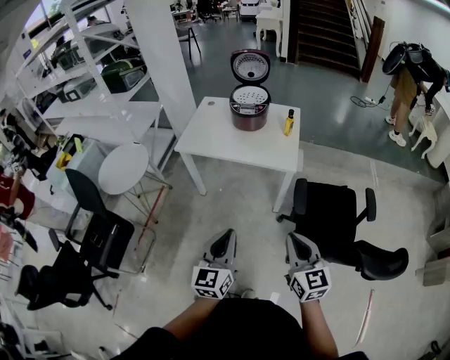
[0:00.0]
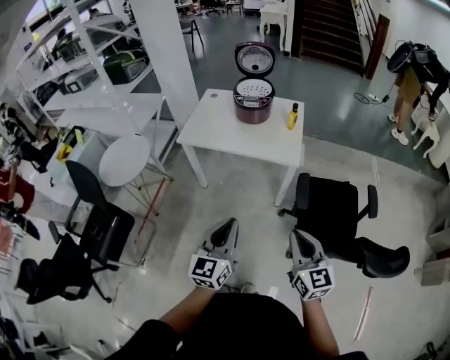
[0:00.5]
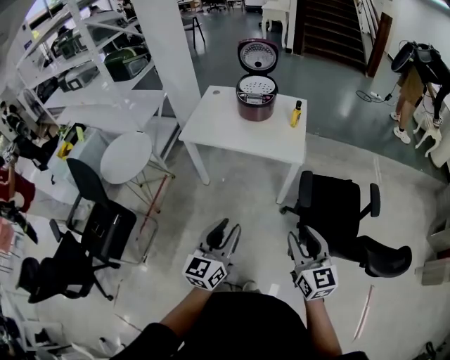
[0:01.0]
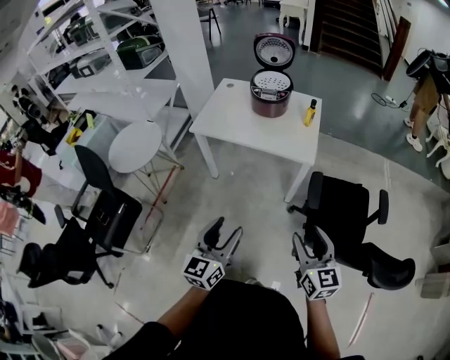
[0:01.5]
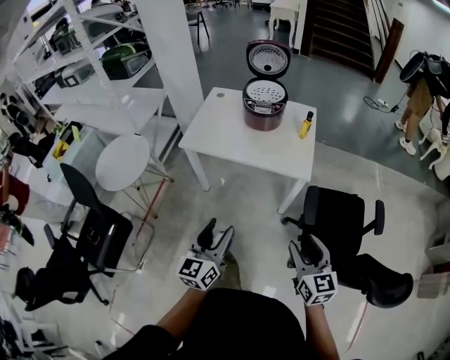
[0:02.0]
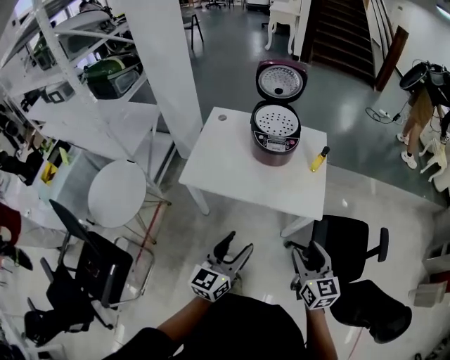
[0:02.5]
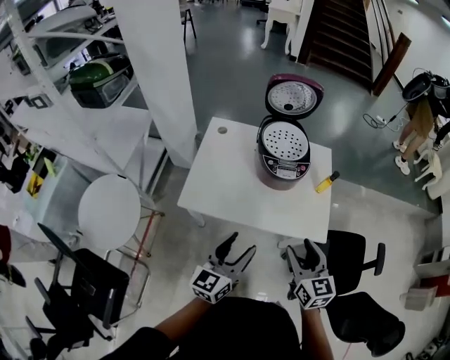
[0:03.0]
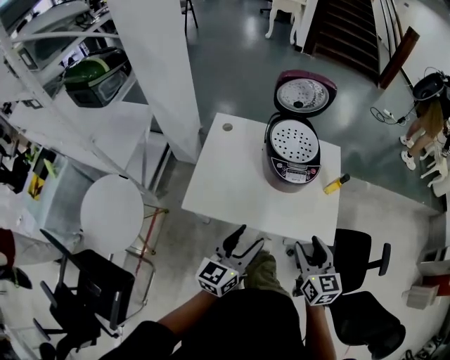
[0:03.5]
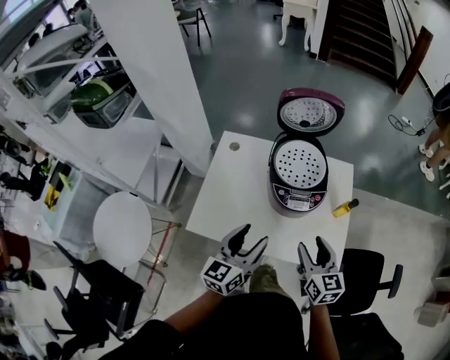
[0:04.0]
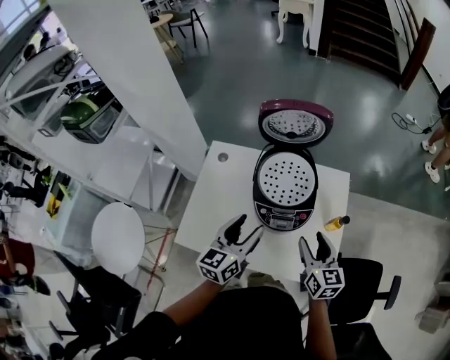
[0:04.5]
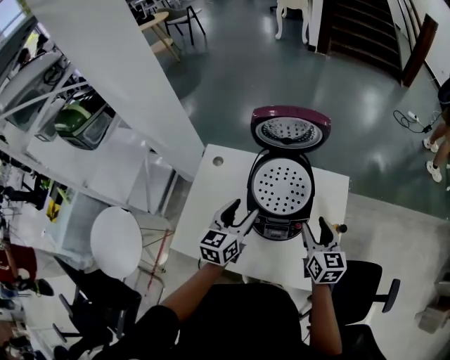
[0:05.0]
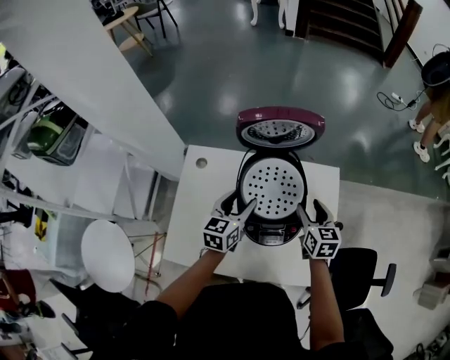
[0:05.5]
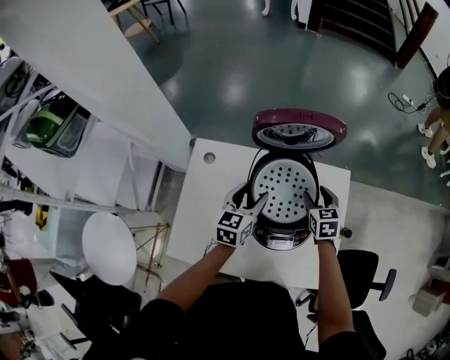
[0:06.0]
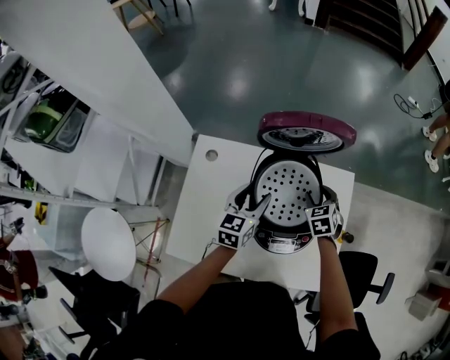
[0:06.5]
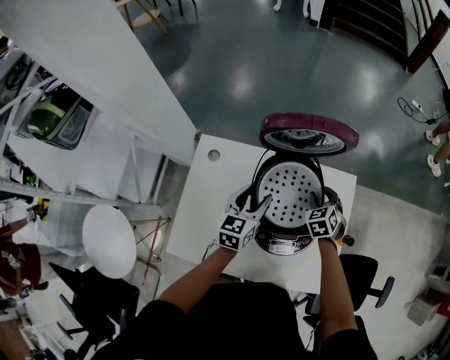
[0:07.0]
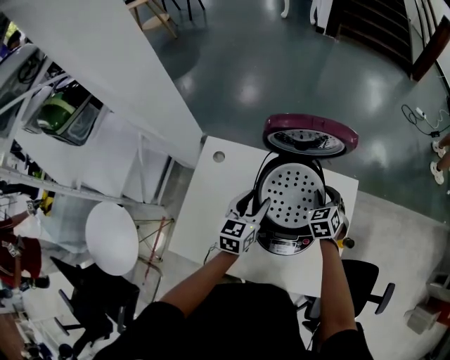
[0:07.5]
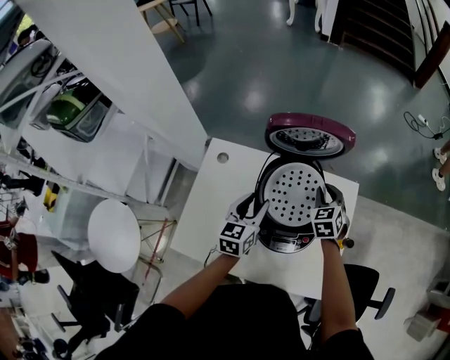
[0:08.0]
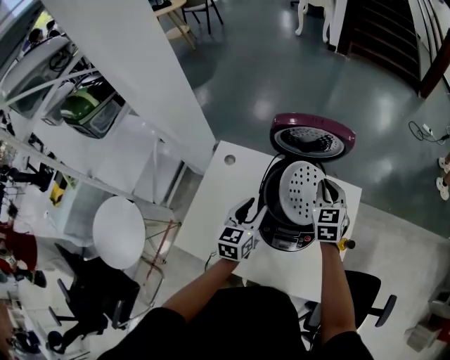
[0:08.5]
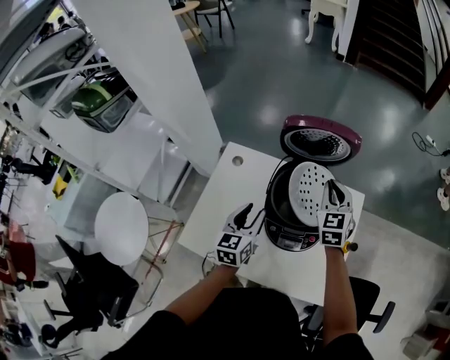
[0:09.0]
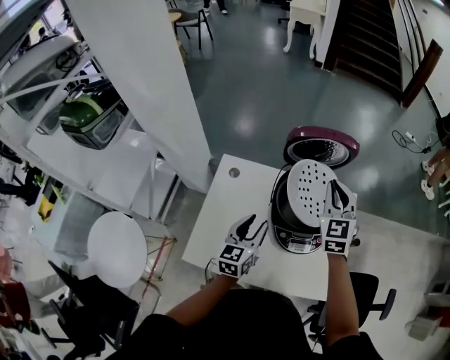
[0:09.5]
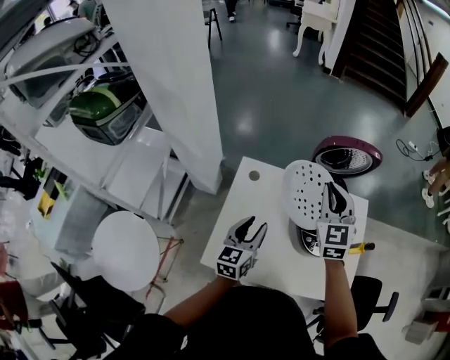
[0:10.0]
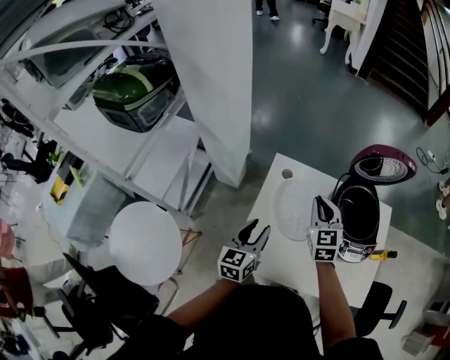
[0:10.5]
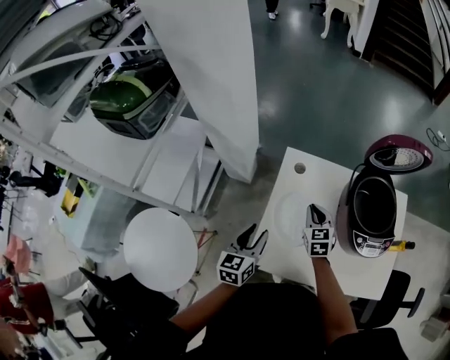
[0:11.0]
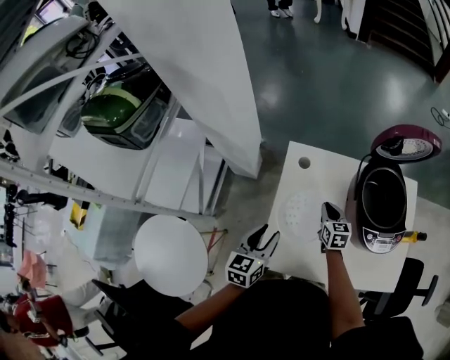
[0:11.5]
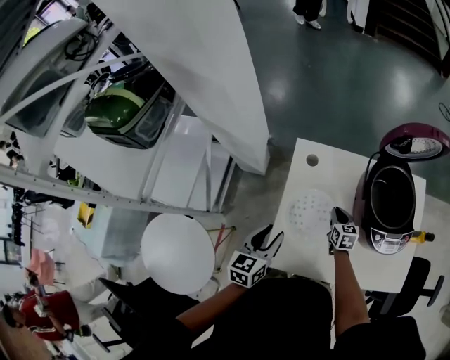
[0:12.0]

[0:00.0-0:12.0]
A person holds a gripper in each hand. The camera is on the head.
0:00.0 to 0:02.0: The left gripper heads forward and to the left, covering roughly 15 cm, and opens. The right gripper heads forward, covering roughly 10 cm, and opens its fingers.
0:02.0 to 0:04.0: Both grippers are carried forward, about 50 cm.
0:04.0 to 0:06.0: The two grippers go about 35 cm forward. The right gripper changes its angle by some 20 degrees.
0:06.0 to 0:08.0: The right gripper turns by roughly 20 degrees, and closes its fingers.
0:08.0 to 0:10.0: The left gripper goes some 20 cm to the left and backward, while the right gripper heads upward and to the left, covering some 30 cm, and turns by some 30 degrees.
0:10.0 to 0:12.0: The left gripper is displaced to the left and downward by roughly 20 cm; the right gripper moves downward, roughly 40 cm, and rotates some 50 degrees.

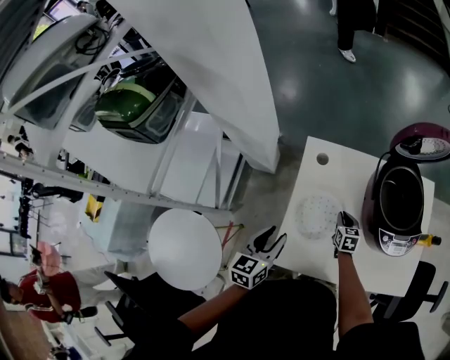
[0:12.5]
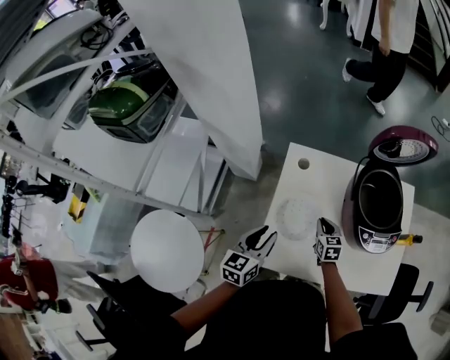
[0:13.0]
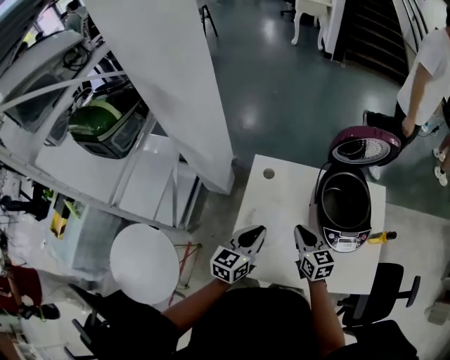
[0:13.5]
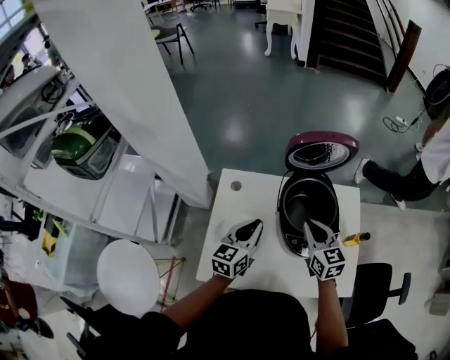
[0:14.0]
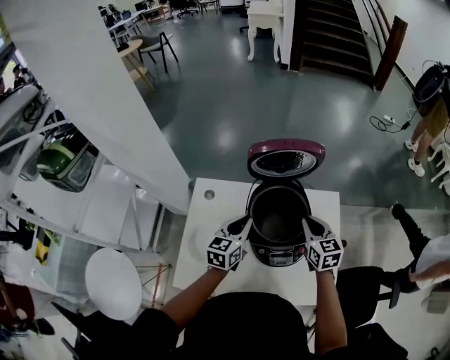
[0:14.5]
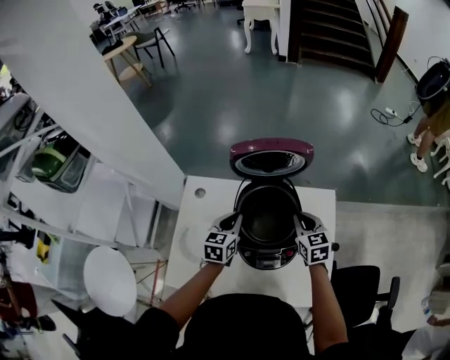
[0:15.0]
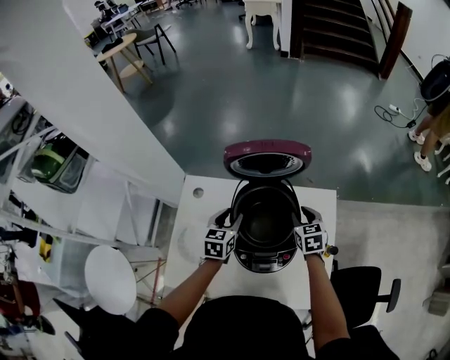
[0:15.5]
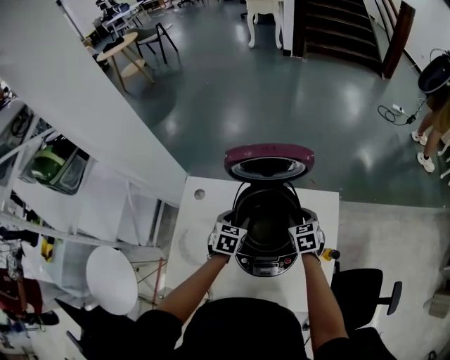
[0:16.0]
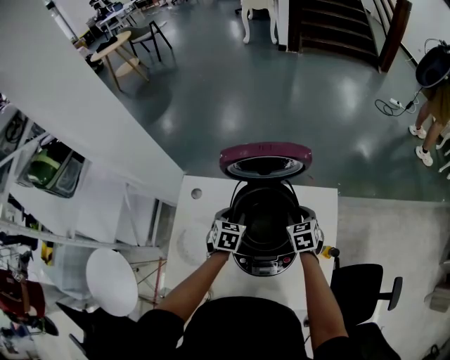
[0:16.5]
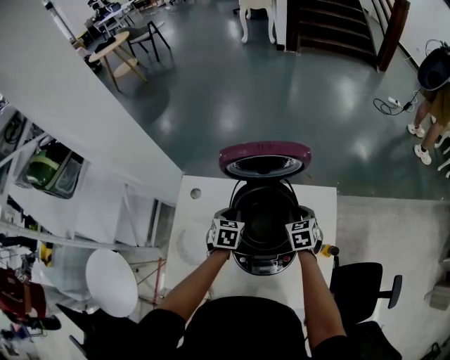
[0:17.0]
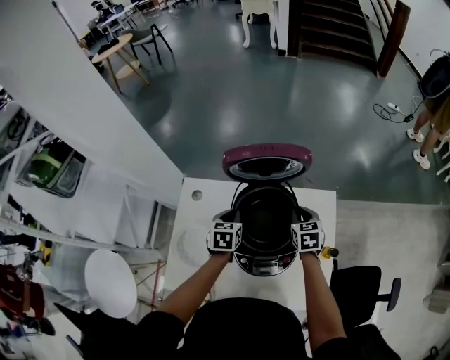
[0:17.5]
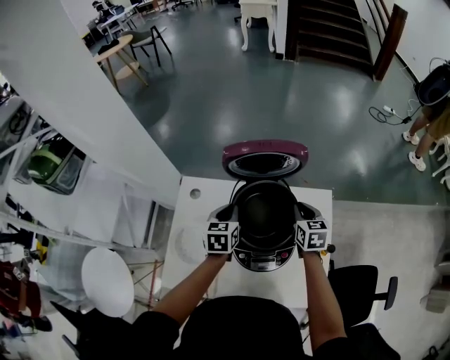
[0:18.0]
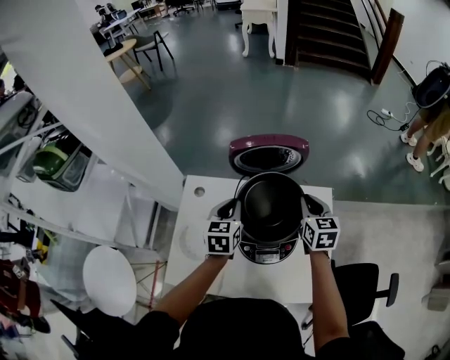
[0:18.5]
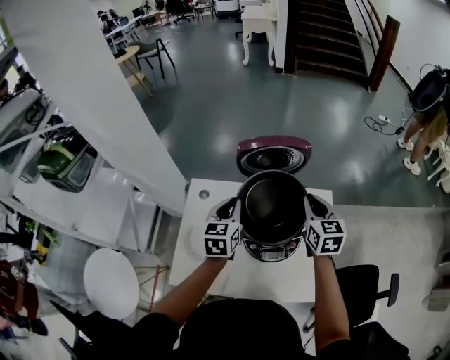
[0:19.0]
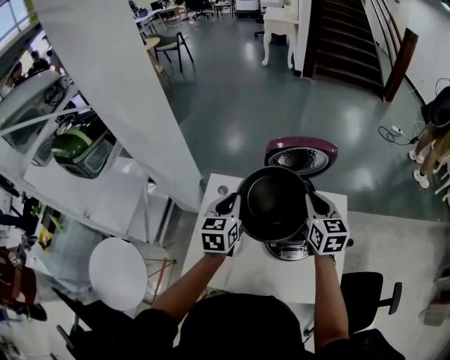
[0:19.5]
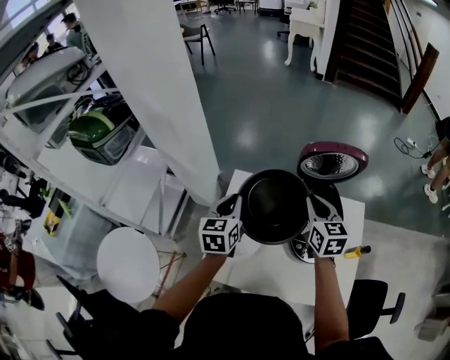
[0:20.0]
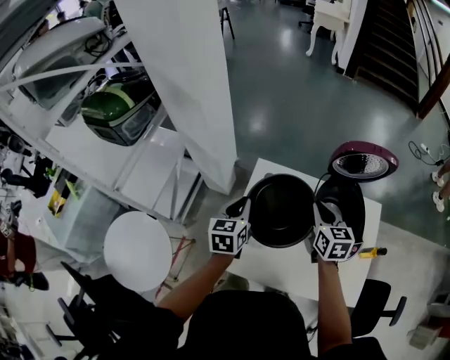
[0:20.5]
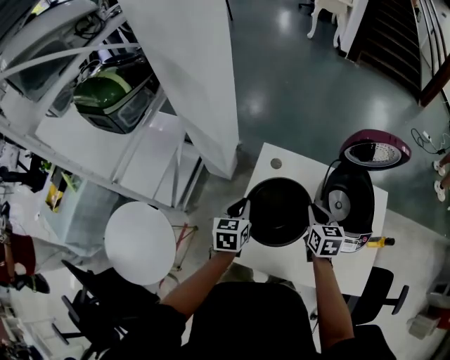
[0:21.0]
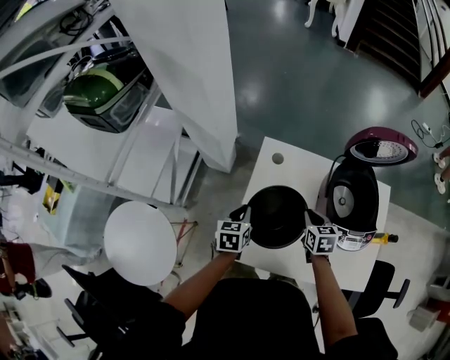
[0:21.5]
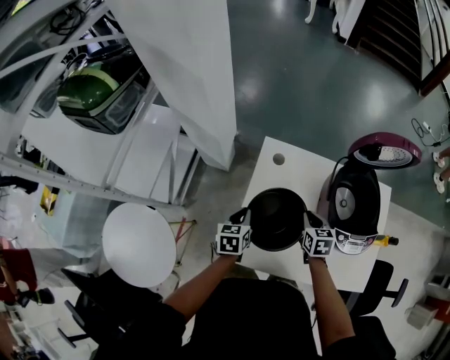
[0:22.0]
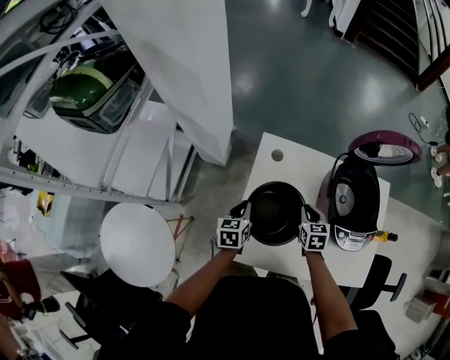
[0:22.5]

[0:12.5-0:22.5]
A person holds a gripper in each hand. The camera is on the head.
0:12.5 to 0:14.5: The right gripper travels upward and to the right by about 40 cm, and changes its angle by some 20 degrees; the left gripper goes approximately 35 cm to the right and forward, and closes.
0:14.5 to 0:16.5: The grippers both shift downward and forward by roughly 15 cm. The right gripper changes its angle by approximately 20 degrees, and opens its fingers; the left gripper rotates approximately 30 degrees, and opens up.
0:16.5 to 0:18.5: Both grippers move upward, some 15 cm. The right gripper rotates about 20 degrees, and closes its fingers; the left gripper swivels roughly 20 degrees, and closes.
0:18.5 to 0:20.5: Both grippers travel together to the left, approximately 30 cm.
0:20.5 to 0:22.5: Both grippers travel together downward, about 20 cm. The right gripper changes its angle by about 20 degrees.

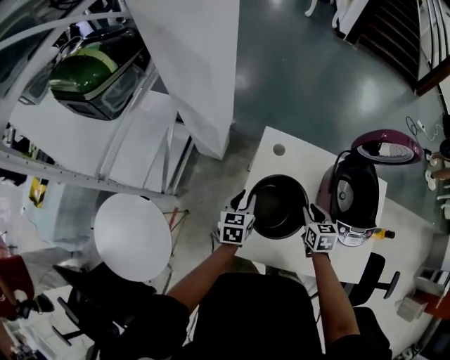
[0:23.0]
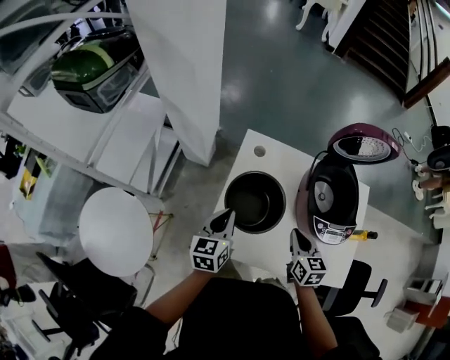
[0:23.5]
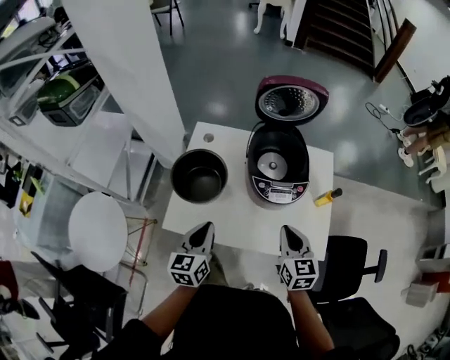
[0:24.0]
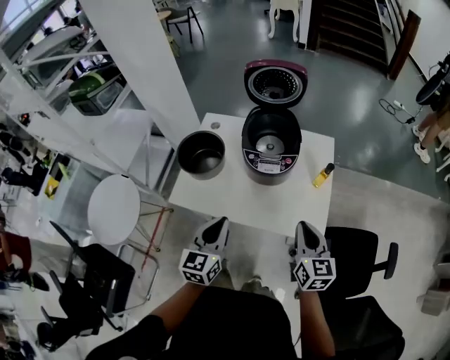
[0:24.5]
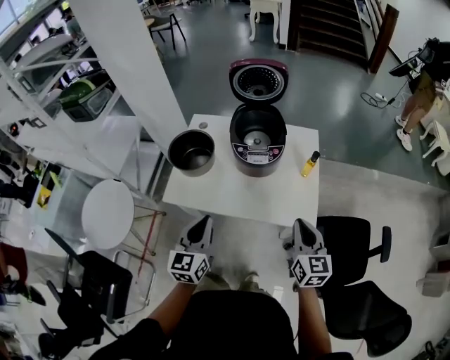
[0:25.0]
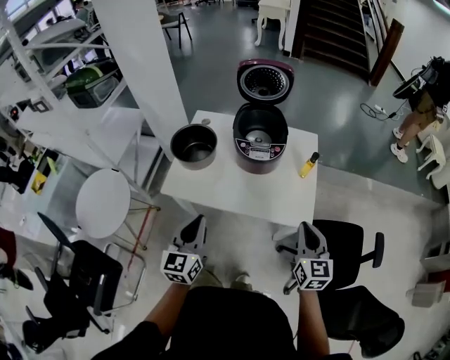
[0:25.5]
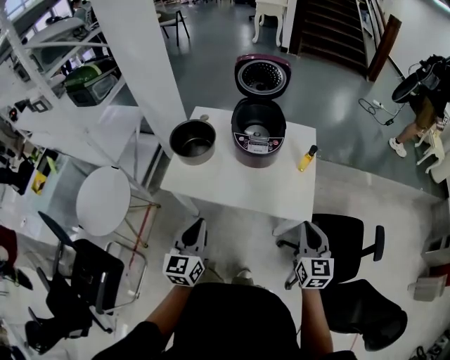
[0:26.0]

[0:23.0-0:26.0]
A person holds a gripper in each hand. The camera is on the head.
0:23.0 to 0:24.5: The two grippers travel together, backward and to the right, about 50 cm. The grippers both shift upward by about 20 cm. The right gripper tips its fingers upward by approximately 30 degrees, while the left gripper swivels some 20 degrees, and closes up.
0:24.5 to 0:26.0: Both grippers travel together backward, about 10 cm.

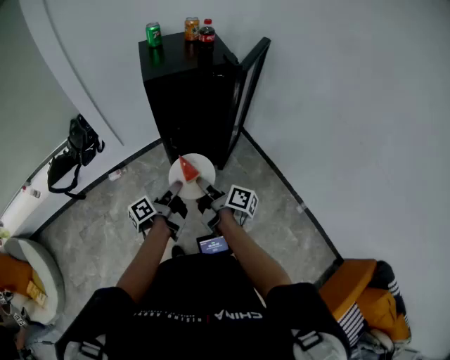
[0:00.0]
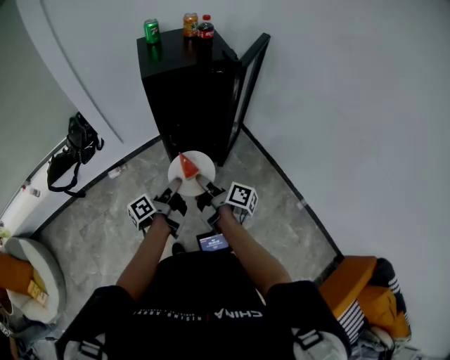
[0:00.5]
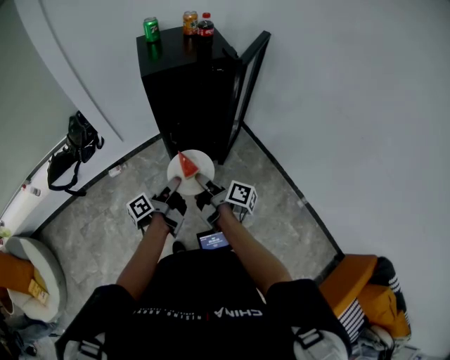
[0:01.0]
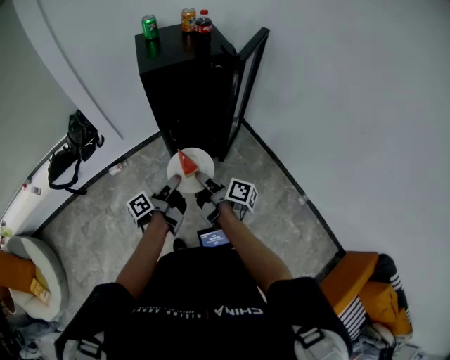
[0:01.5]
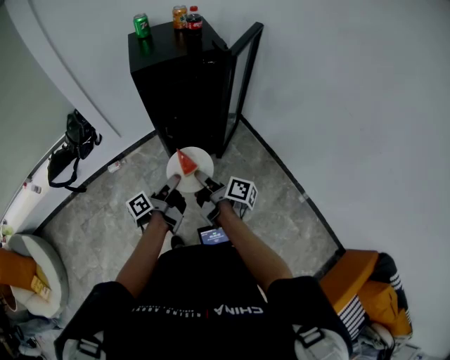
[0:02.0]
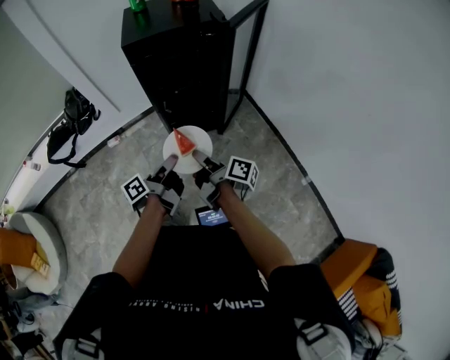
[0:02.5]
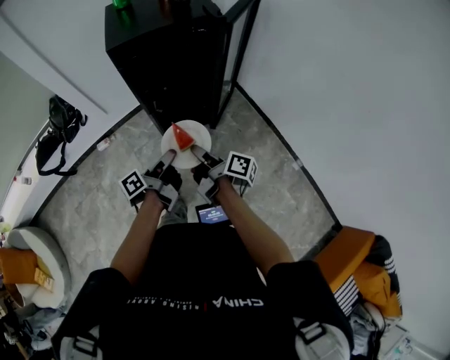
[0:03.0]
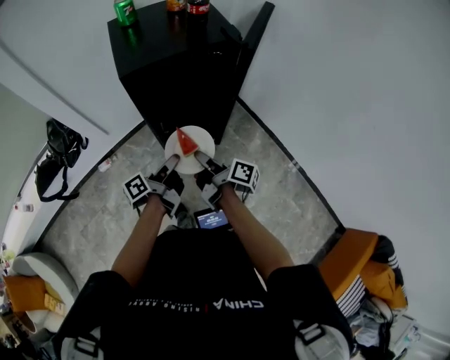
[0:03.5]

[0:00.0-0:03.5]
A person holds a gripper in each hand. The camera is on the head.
0:00.0 to 0:02.0: The grippers stay close to where they were, moving slightly.
0:02.0 to 0:03.5: Both grippers travel together forward, roughly 15 cm.
